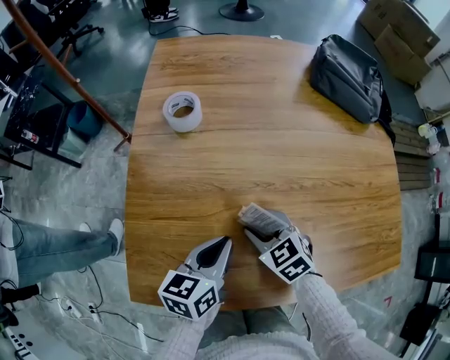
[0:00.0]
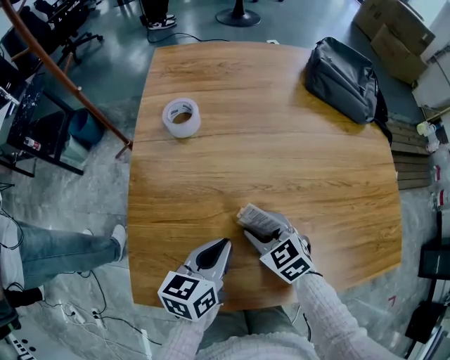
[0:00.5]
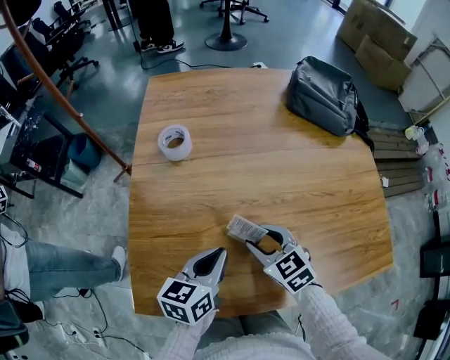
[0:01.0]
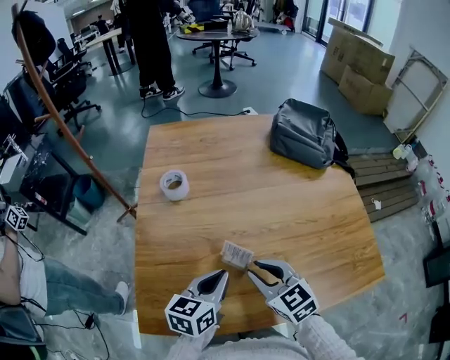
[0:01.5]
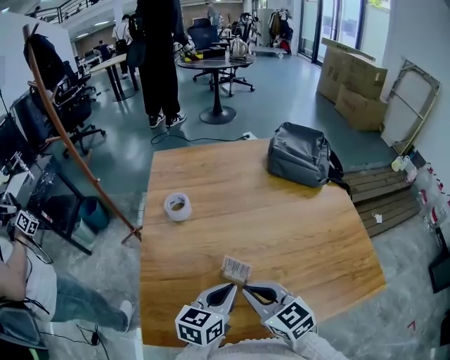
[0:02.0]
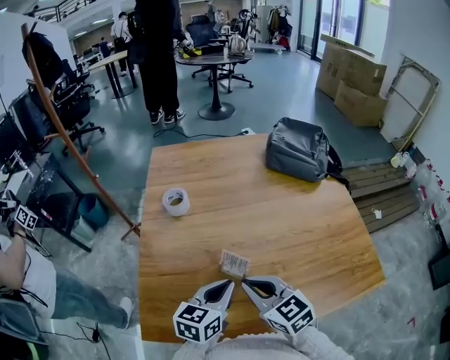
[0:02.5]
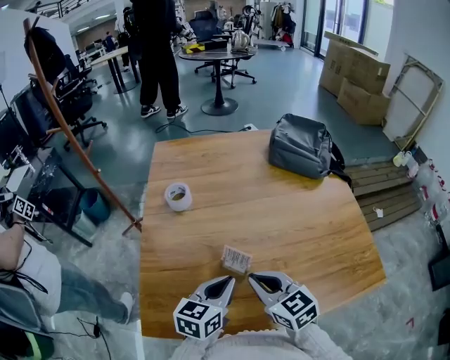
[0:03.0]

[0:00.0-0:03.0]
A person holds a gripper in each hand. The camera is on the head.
0:00.0 to 0:01.5: The right gripper heads upward, covering approximately 15 cm, and rotates roughly 20 degrees, while the left gripper is displaced upward by approximately 10 cm.
0:01.5 to 0:03.0: The right gripper closes up.

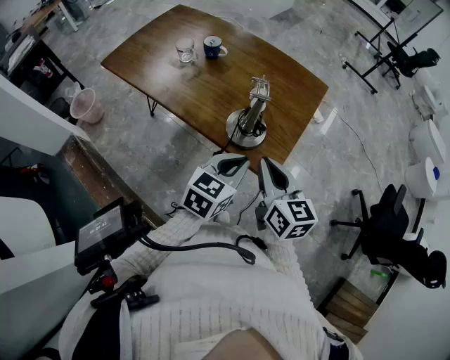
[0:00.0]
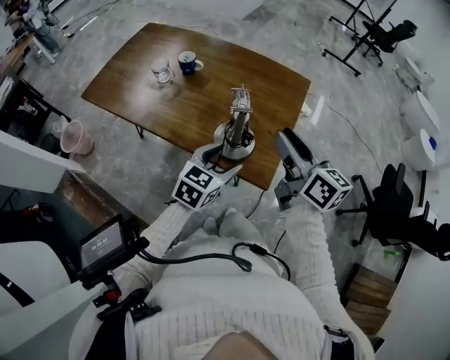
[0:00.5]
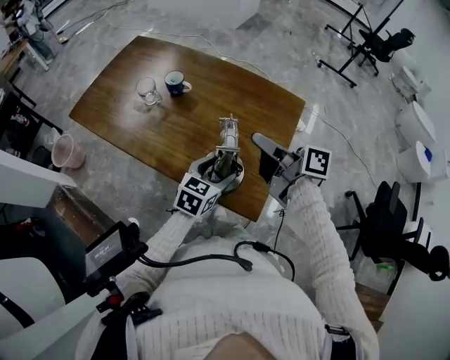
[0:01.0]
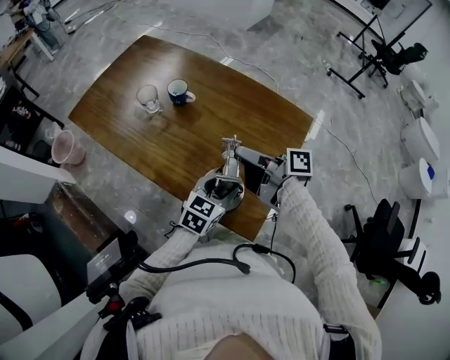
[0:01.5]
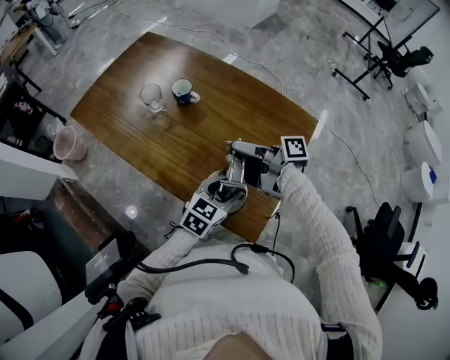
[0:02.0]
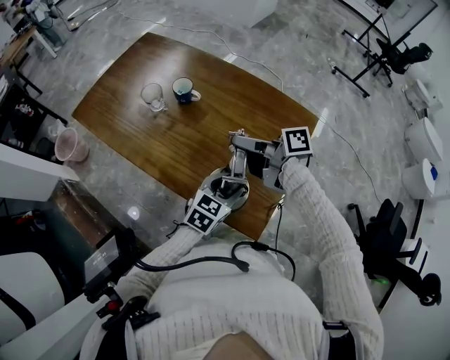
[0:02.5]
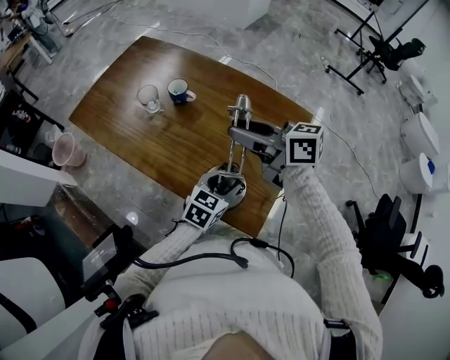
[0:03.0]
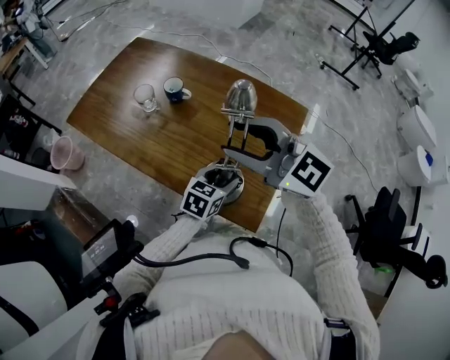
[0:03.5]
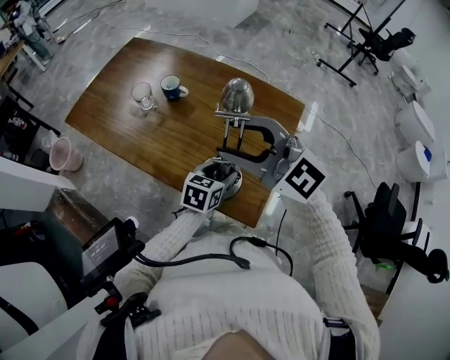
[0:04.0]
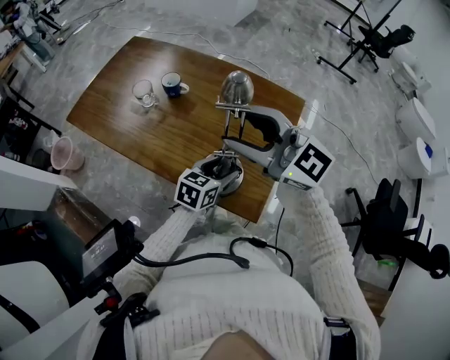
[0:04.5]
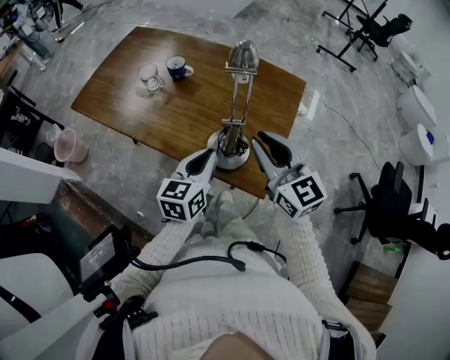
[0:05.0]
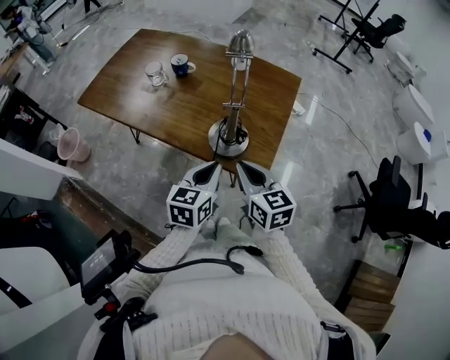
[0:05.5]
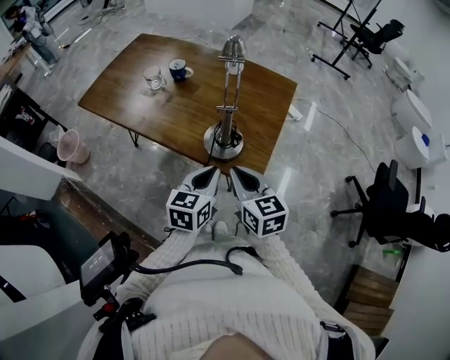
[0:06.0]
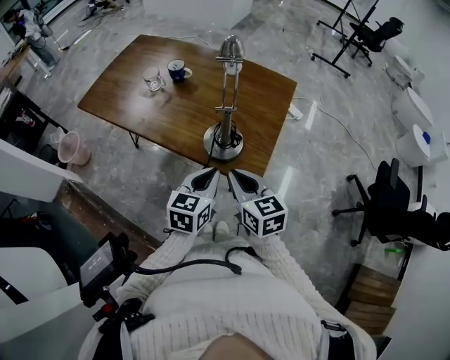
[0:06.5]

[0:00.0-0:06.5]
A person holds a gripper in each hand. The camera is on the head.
0:00.0 to 0:02.0: The right gripper goes some 25 cm forward, rotates about 80 degrees, and opens up. The left gripper goes about 15 cm forward and downward, and opens up.
0:02.0 to 0:04.5: The right gripper travels upward and backward by roughly 20 cm, and twists about 100 degrees counterclockwise, seen from behind.
0:04.5 to 0:06.5: The left gripper is displaced backward and upward by about 15 cm, and closes its fingers. The right gripper is displaced downward and backward by about 25 cm, swivels about 50 degrees, and closes up.

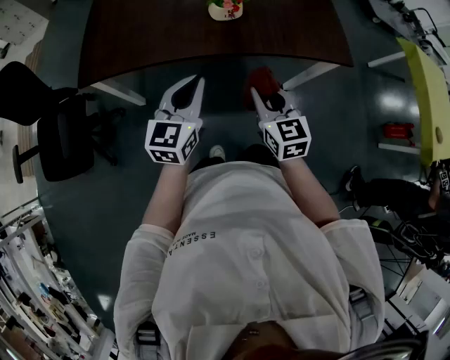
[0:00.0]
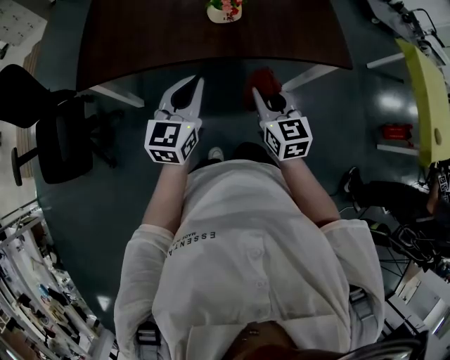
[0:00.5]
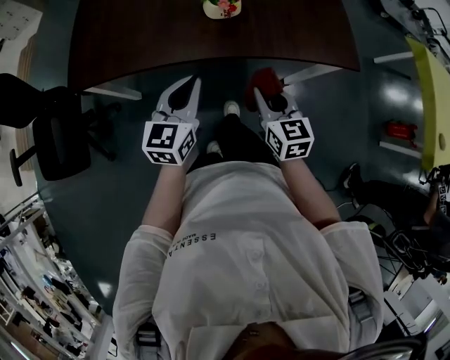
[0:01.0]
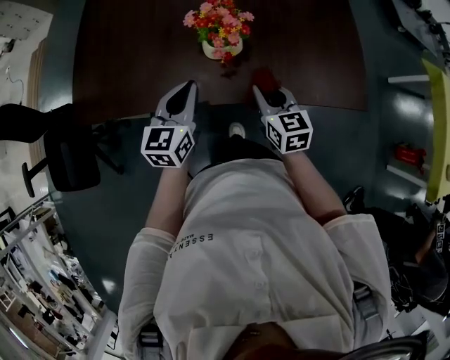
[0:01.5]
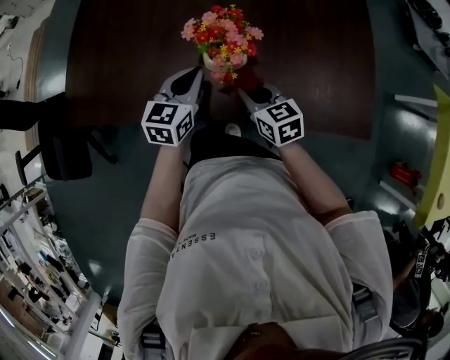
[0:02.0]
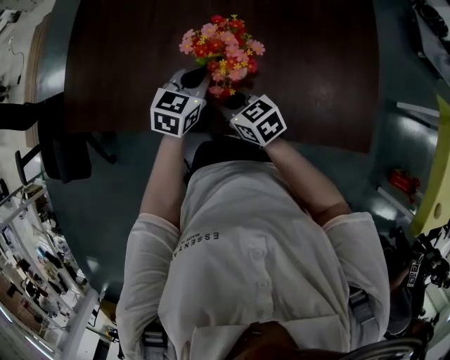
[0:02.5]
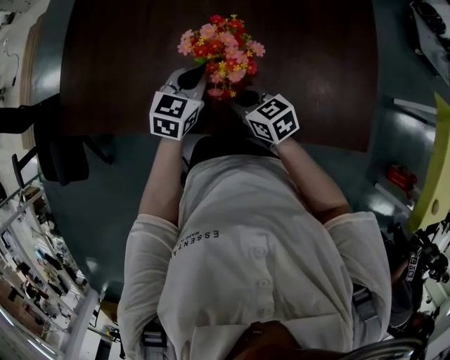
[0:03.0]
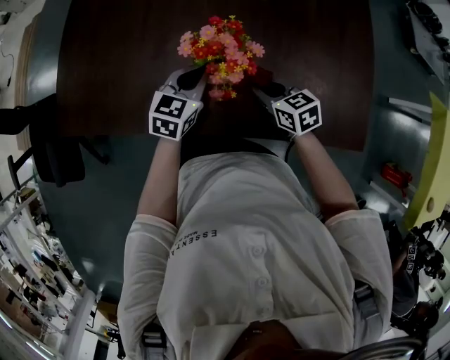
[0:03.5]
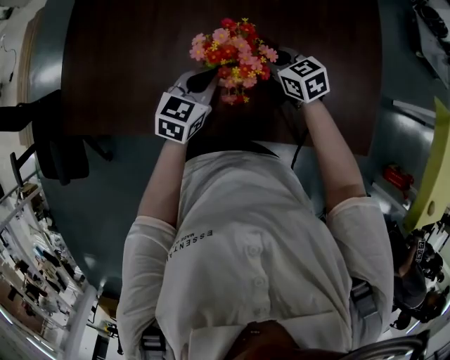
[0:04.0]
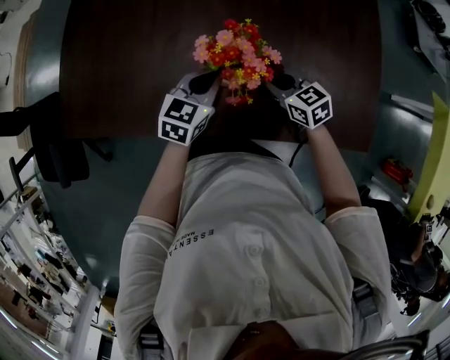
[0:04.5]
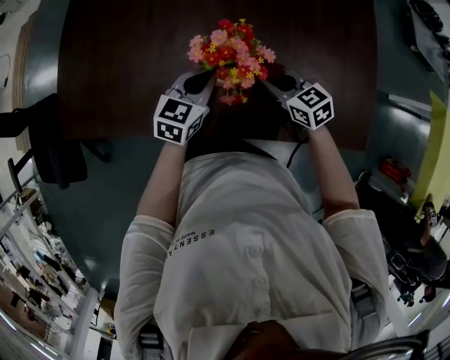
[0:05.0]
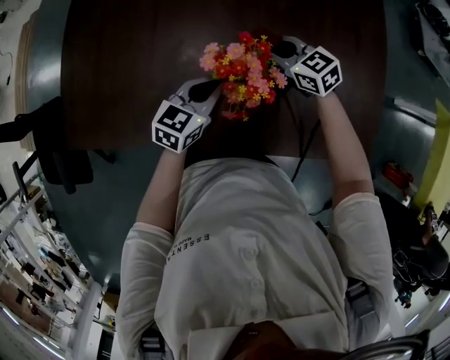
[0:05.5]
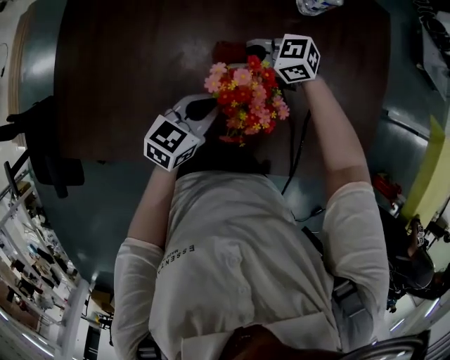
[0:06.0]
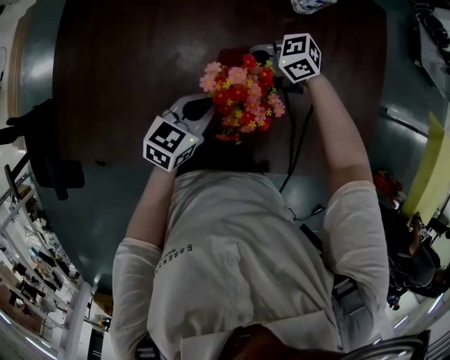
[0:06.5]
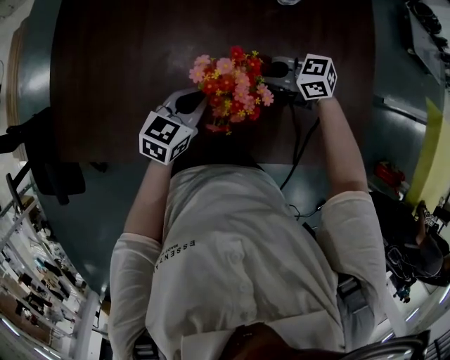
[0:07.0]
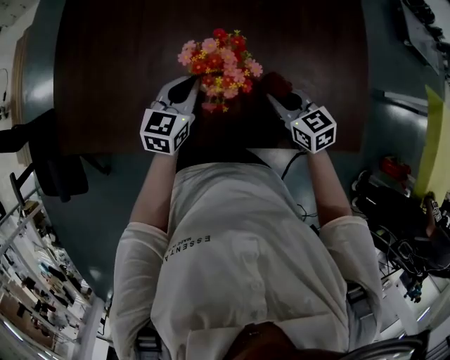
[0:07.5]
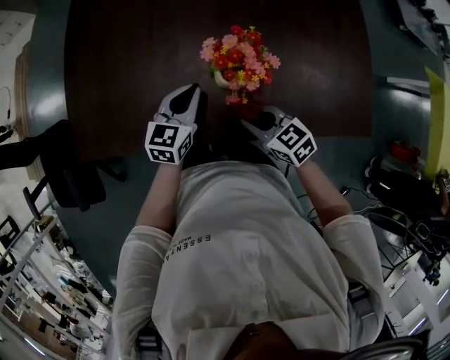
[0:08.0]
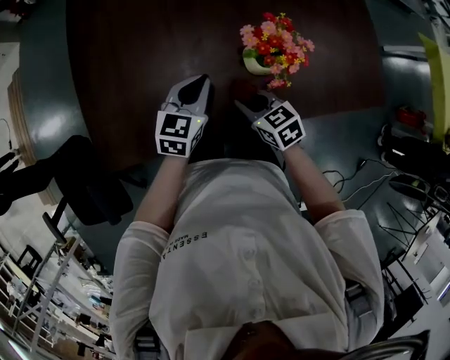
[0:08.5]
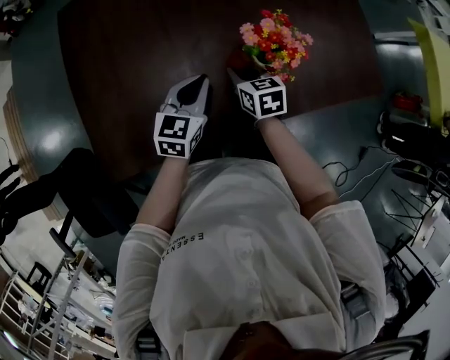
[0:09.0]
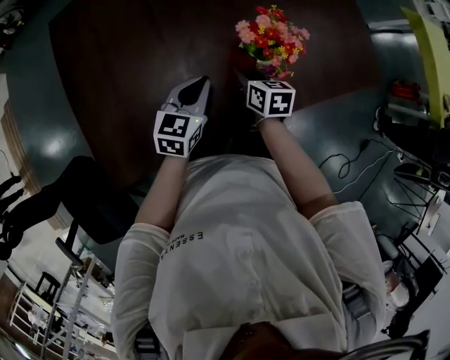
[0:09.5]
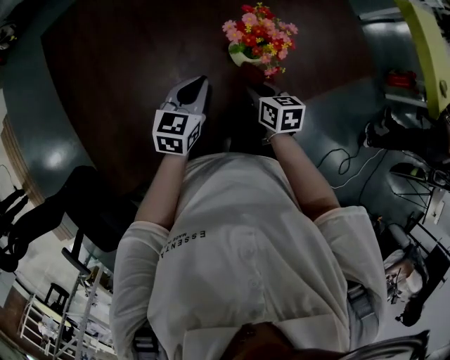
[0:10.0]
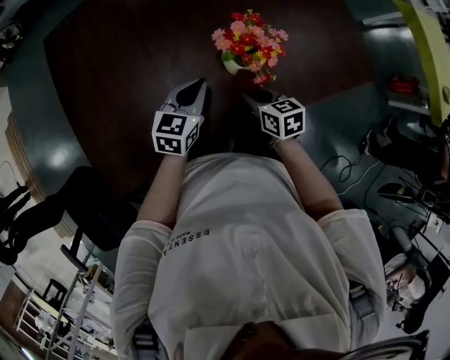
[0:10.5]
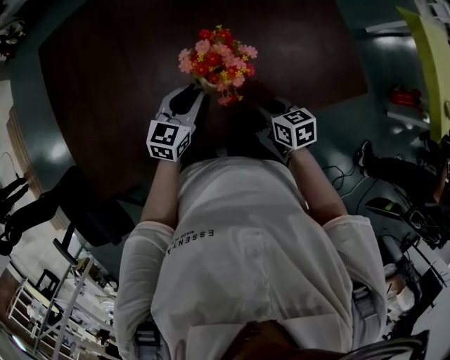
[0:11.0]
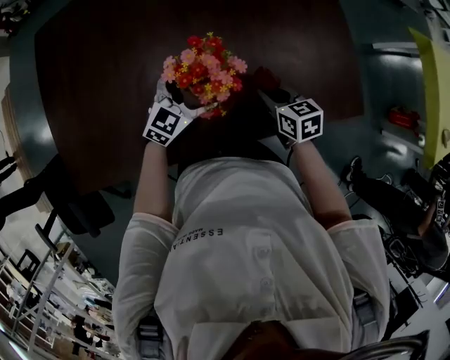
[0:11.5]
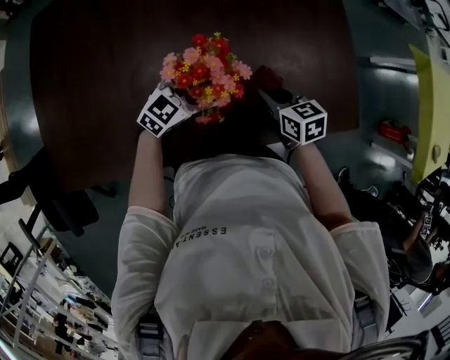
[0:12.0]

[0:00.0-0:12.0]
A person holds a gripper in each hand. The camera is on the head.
0:00.0 to 0:02.0: The left gripper heads forward, covering roughly 30 cm. The right gripper goes about 30 cm forward and downward, and rotates about 30 degrees.
0:02.0 to 0:04.0: The left gripper shifts by roughly 5 cm. The right gripper moves forward, about 15 cm.
0:04.0 to 0:06.0: The right gripper shifts by some 10 cm, and changes its angle by roughly 40 degrees.
0:06.0 to 0:08.0: The right gripper shifts by roughly 20 cm, and swivels roughly 40 degrees. The left gripper shifts by about 5 cm.
0:08.0 to 0:10.0: The left gripper changes place by approximately 5 cm, and swivels roughly 20 degrees, while the right gripper swivels roughly 60 degrees.
0:10.0 to 0:12.0: Both grippers move to the right and forward, approximately 20 cm. The right gripper turns by about 30 degrees. Meanwhile the left gripper opens up.

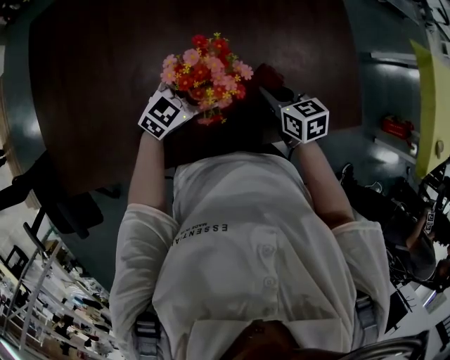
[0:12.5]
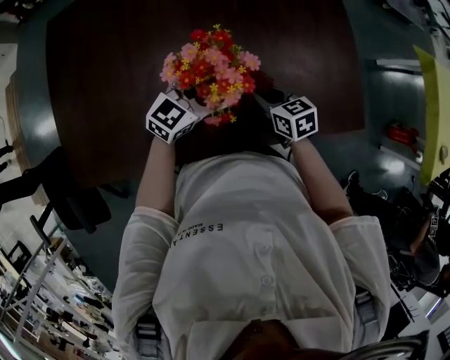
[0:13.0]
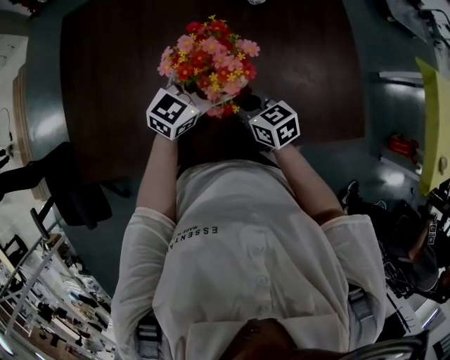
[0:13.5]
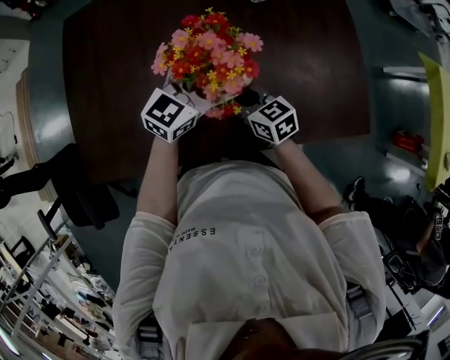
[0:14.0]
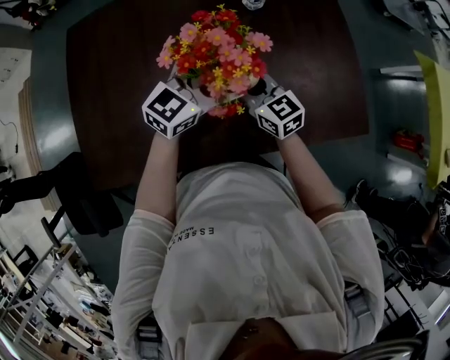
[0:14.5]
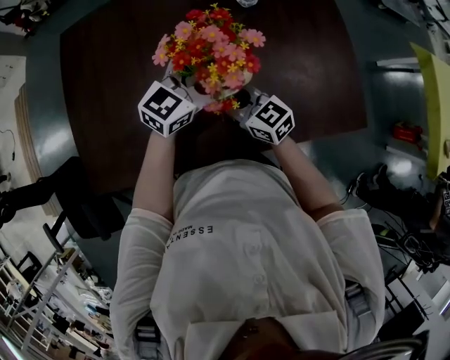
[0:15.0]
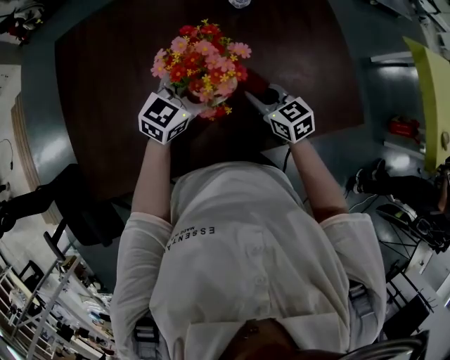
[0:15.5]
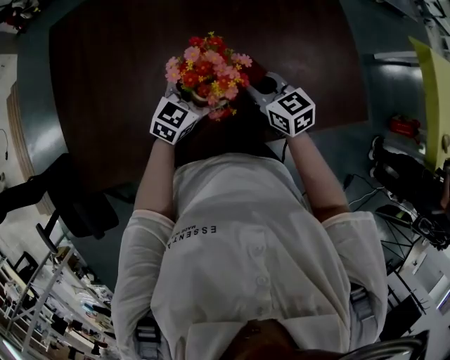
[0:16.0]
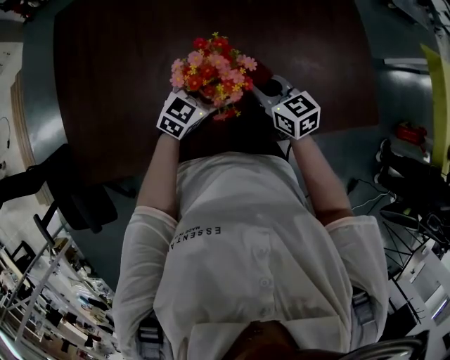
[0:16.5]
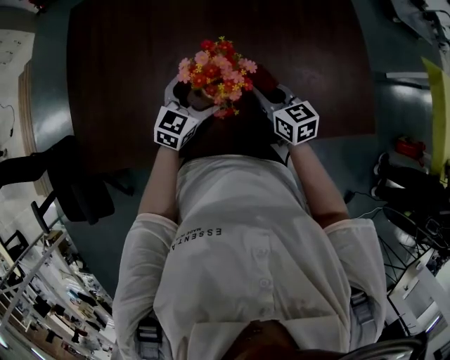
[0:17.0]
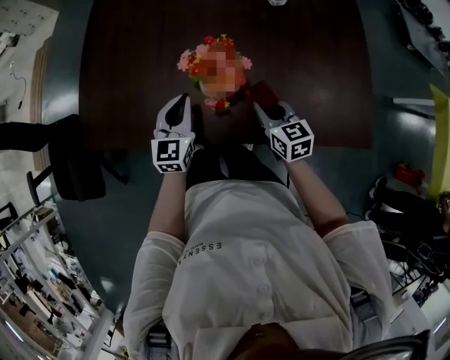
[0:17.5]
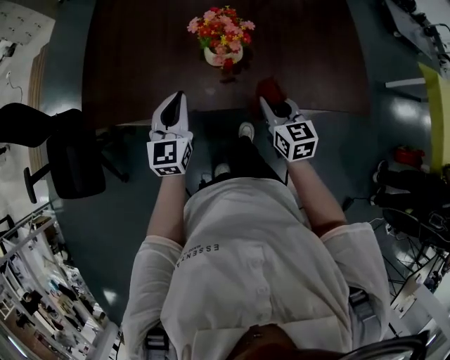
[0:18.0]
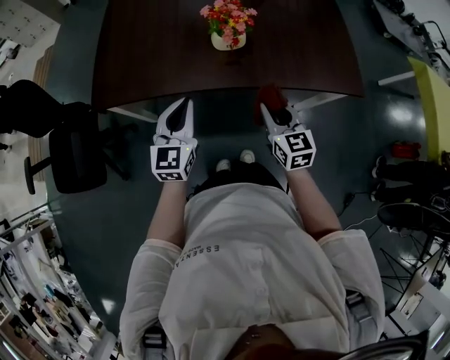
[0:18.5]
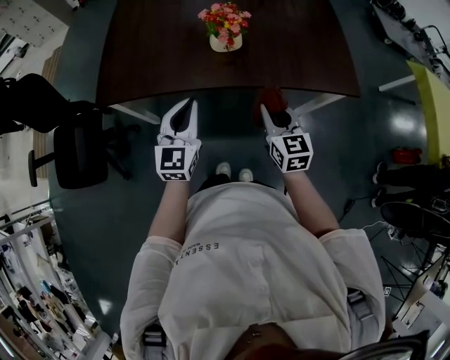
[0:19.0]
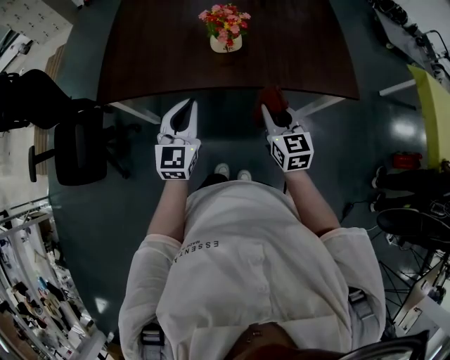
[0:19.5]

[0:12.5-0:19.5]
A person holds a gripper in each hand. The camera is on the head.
0:12.5 to 0:14.5: The left gripper is displaced upward by some 20 cm, while the right gripper travels to the left and upward by about 20 cm, and rotates approximately 30 degrees.
0:14.5 to 0:16.0: The right gripper travels to the right by approximately 5 cm, while the left gripper heads downward, covering about 15 cm.
0:16.0 to 0:17.5: The left gripper is displaced to the left and backward by approximately 10 cm, rotates about 50 degrees, and closes. The right gripper goes some 5 cm backward.
0:17.5 to 0:19.5: The grippers both shift backward and upward by approximately 25 cm. The right gripper turns by some 20 degrees.
